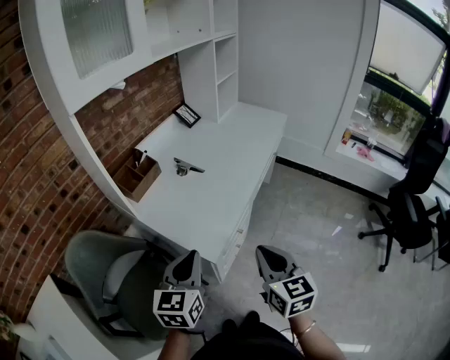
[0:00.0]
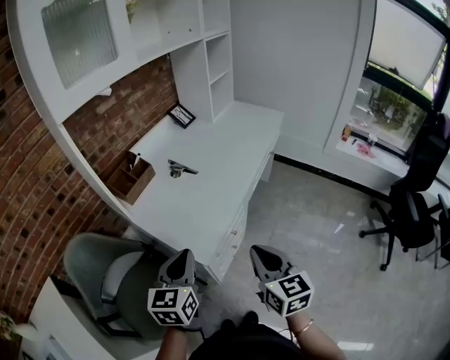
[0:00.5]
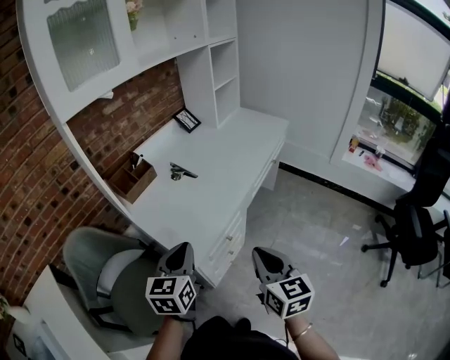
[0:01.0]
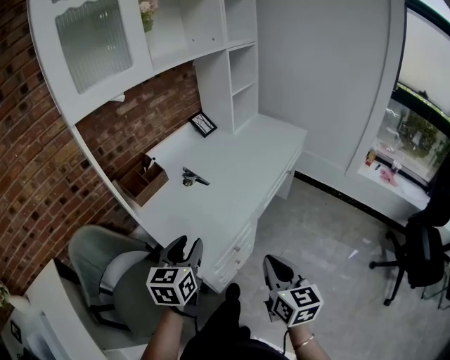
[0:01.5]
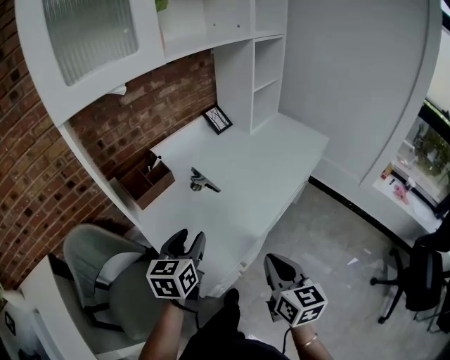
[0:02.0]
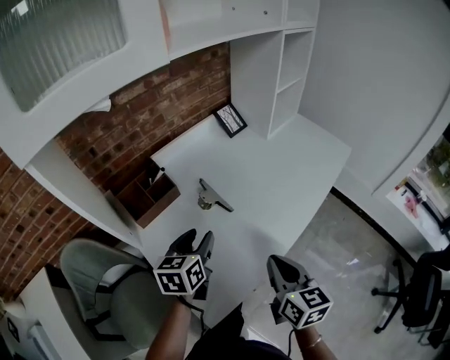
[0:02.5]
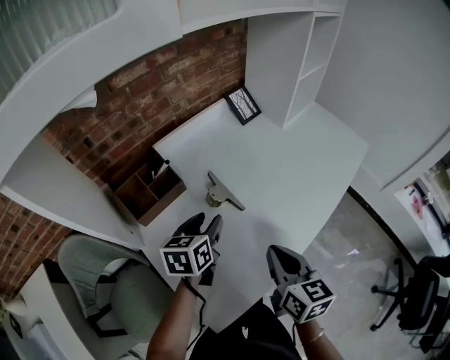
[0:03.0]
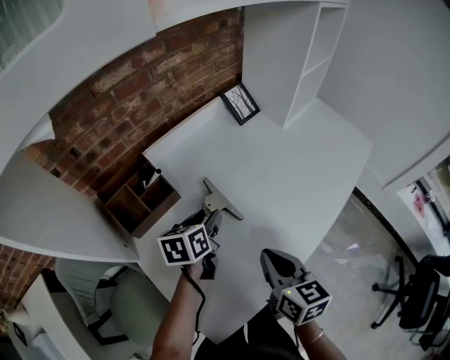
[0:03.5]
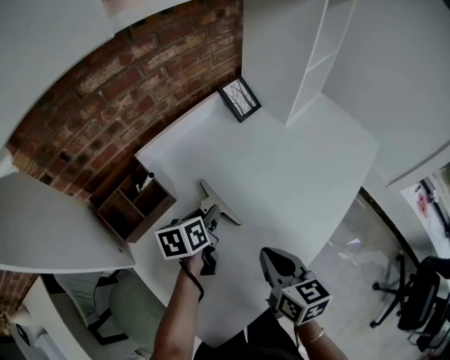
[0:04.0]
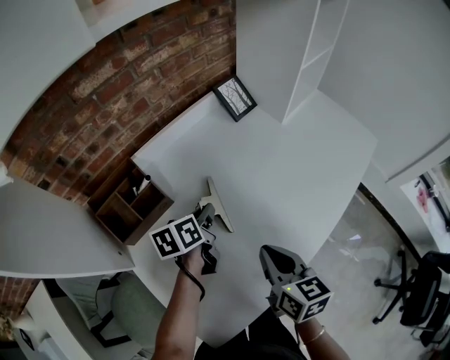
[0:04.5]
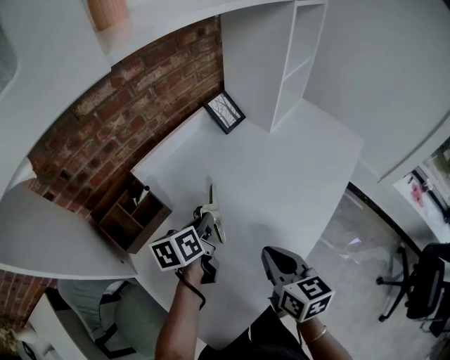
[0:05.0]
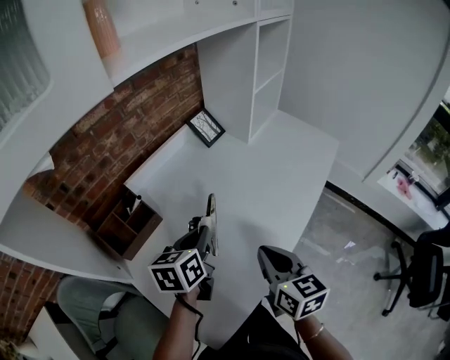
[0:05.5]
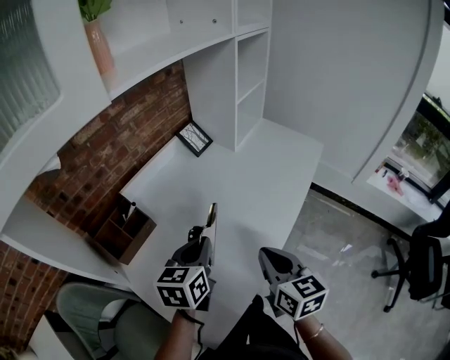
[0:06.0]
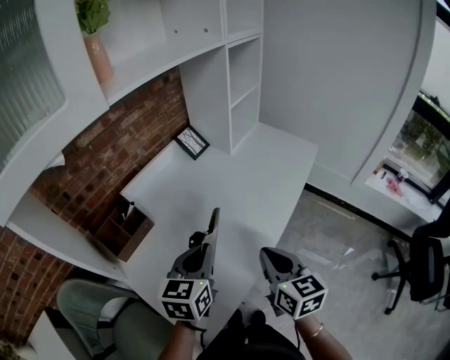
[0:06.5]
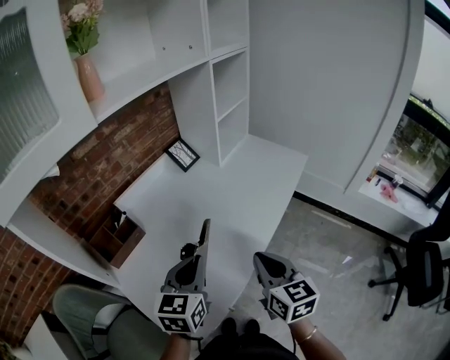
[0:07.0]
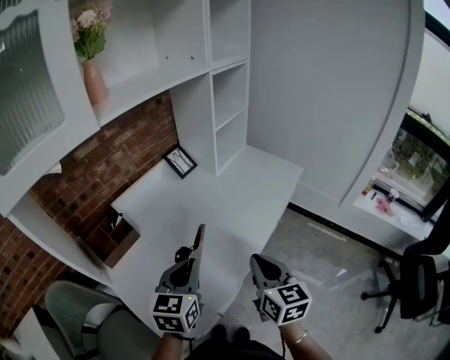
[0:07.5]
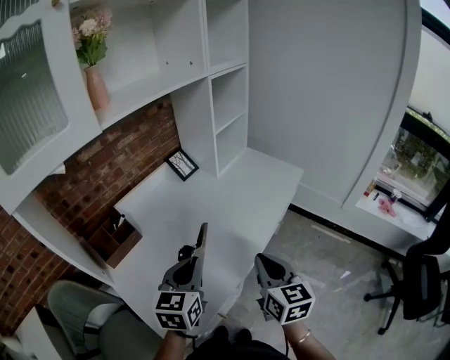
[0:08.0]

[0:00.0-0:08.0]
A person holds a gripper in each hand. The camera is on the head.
0:00.0 to 0:02.0: The left gripper travels forward by about 20 cm, and opens up. The right gripper shifts roughly 15 cm forward and to the right.
0:02.0 to 0:04.0: The right gripper moves forward, approximately 25 cm. Meanwhile the left gripper is displaced forward and downward by approximately 35 cm, and rotates roughly 30 degrees.
0:04.0 to 0:06.0: The right gripper is displaced upward, to the right and backward by approximately 10 cm, while the left gripper moves upward, backward and to the right, some 20 cm, swivels roughly 30 degrees, and closes its fingers.
0:06.0 to 0:08.0: The left gripper shifts approximately 10 cm to the right, backward and upward, while the right gripper is displaced to the right by about 10 cm.

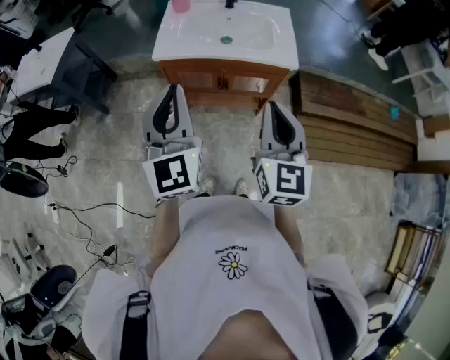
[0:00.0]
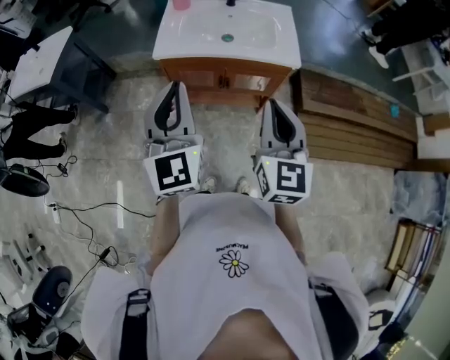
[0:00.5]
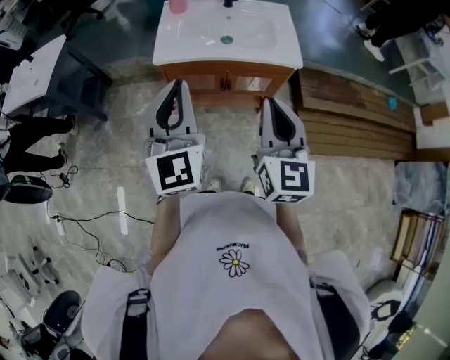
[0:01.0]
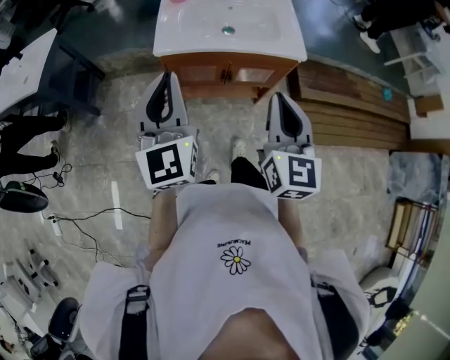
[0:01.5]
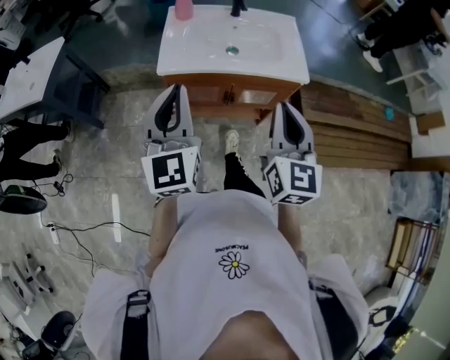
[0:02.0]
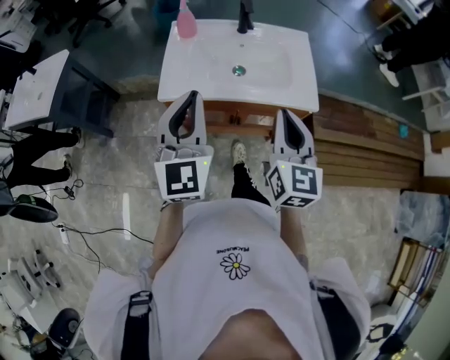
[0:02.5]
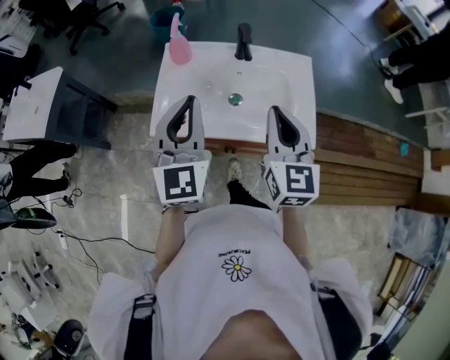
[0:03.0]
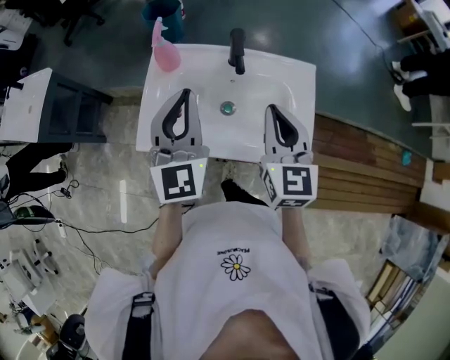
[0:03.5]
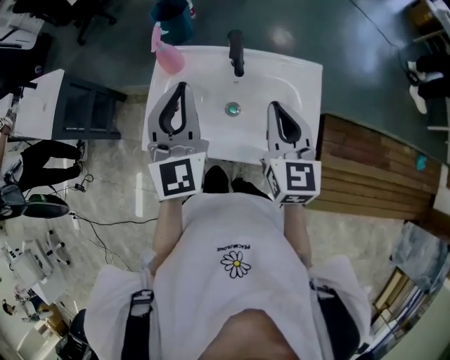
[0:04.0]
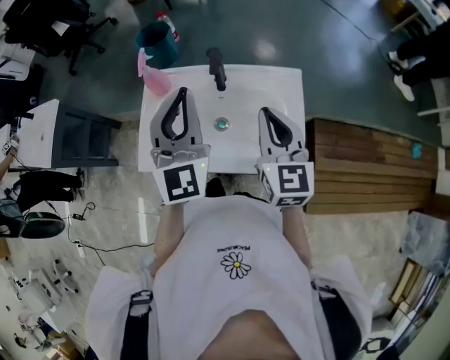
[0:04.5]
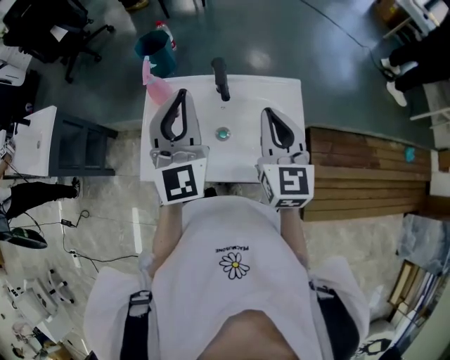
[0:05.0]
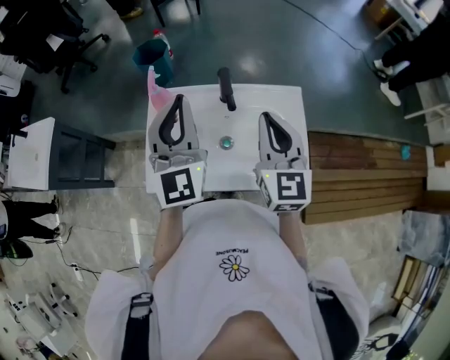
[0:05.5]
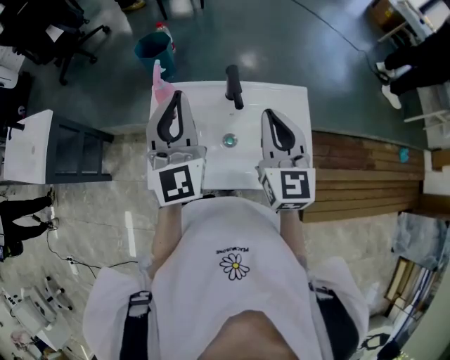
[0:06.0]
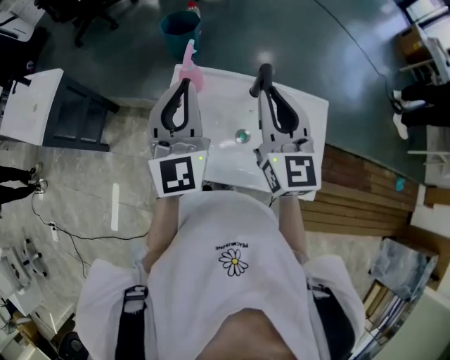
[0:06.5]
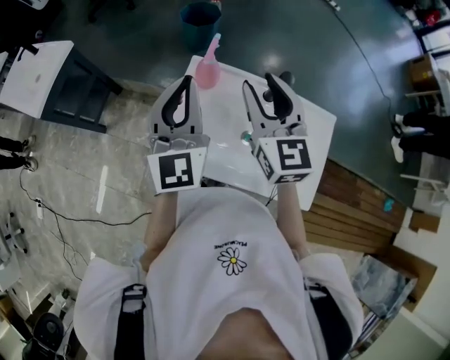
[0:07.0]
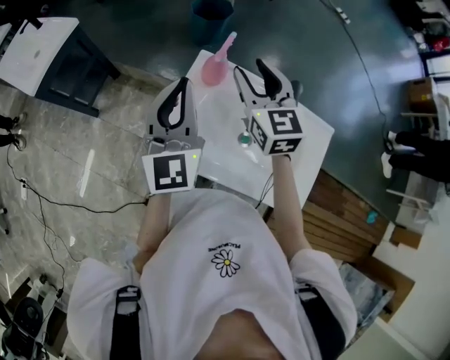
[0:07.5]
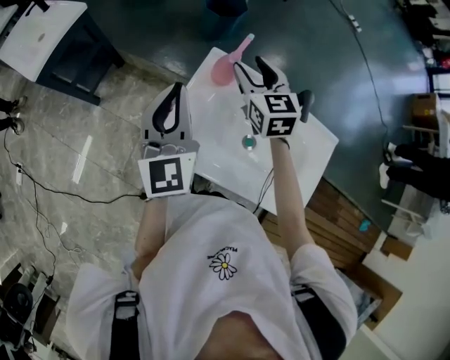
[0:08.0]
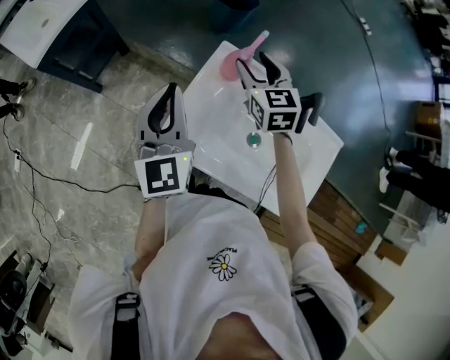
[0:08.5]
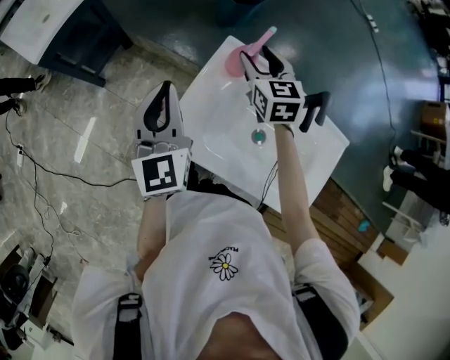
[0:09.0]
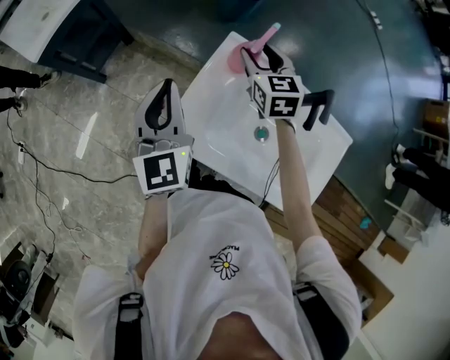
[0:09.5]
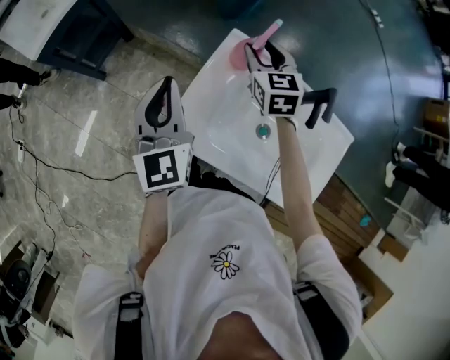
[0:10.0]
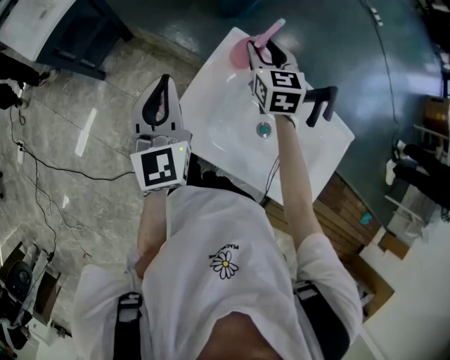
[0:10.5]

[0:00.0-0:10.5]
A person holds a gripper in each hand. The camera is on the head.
0:00.0 to 0:02.0: The right gripper is displaced forward by about 5 cm; the left gripper heads forward and to the left, covering approximately 10 cm.
0:02.0 to 0:04.0: Both grippers move forward, roughly 35 cm.
0:04.0 to 0:06.5: The left gripper moves to the left and forward, approximately 10 cm; the right gripper heads to the left, upward and forward, covering approximately 15 cm.
0:06.5 to 0:08.5: The right gripper is displaced forward, downward and to the left by about 25 cm, rotates roughly 30 degrees, and opens, while the left gripper heads to the left and downward, covering roughly 20 cm, and turns by about 30 degrees.
0:08.5 to 0:10.5: There are only small adjustments of the grippers.

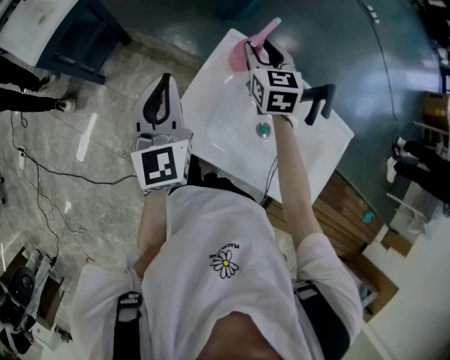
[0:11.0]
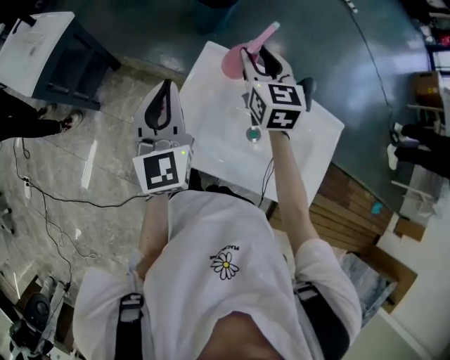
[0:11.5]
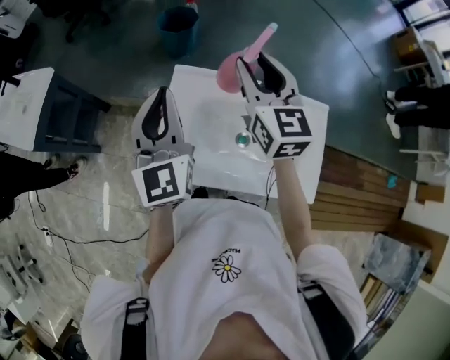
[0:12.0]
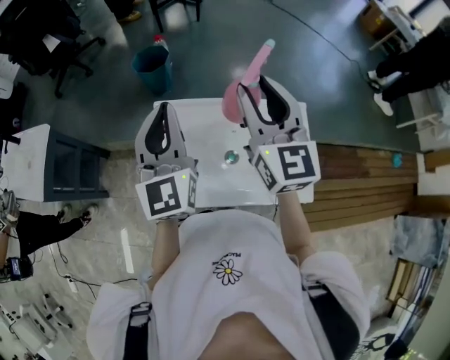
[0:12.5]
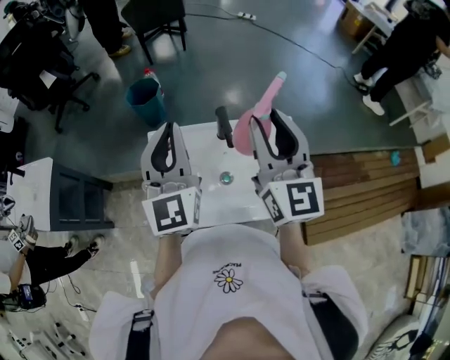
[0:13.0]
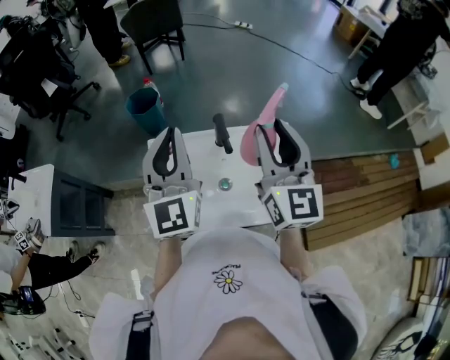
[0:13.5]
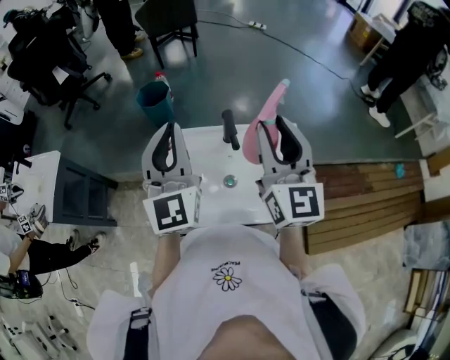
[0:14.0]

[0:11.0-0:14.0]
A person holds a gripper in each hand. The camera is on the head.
0:11.0 to 0:12.5: The left gripper is displaced to the right and upward by roughly 25 cm, and swivels approximately 30 degrees, while the right gripper travels upward, backward and to the right by roughly 35 cm, and points its fingers some 30 degrees further upward.
0:12.5 to 0:14.0: The right gripper goes some 10 cm to the right and backward. The left gripper changes place by roughly 5 cm.

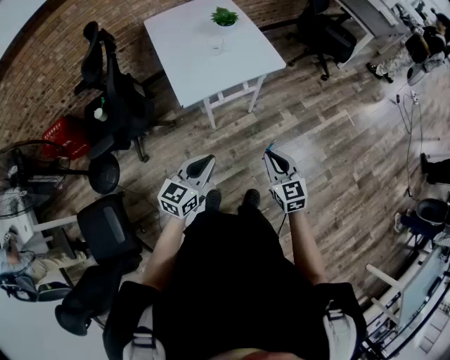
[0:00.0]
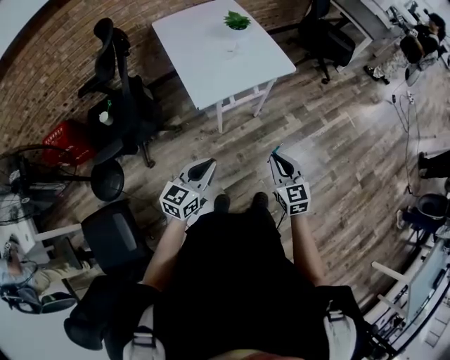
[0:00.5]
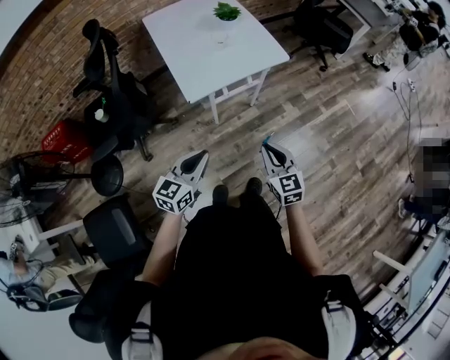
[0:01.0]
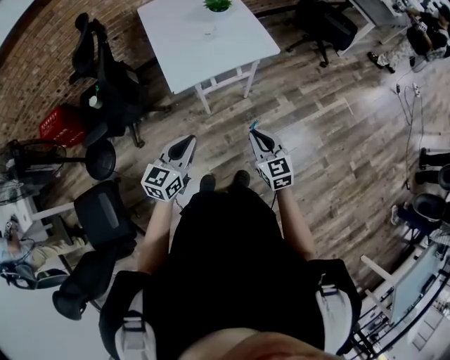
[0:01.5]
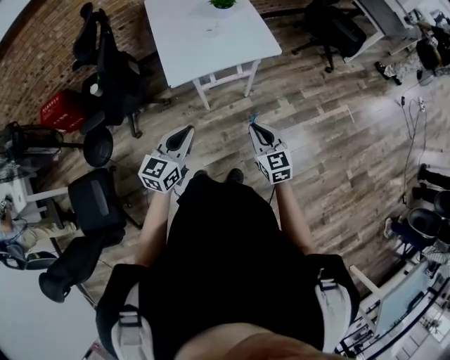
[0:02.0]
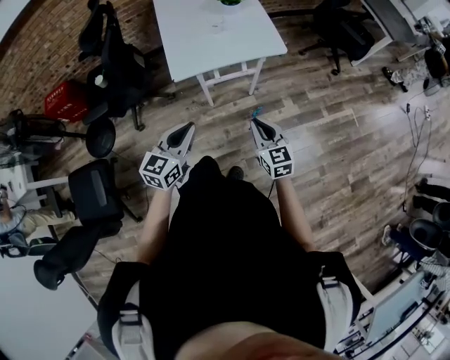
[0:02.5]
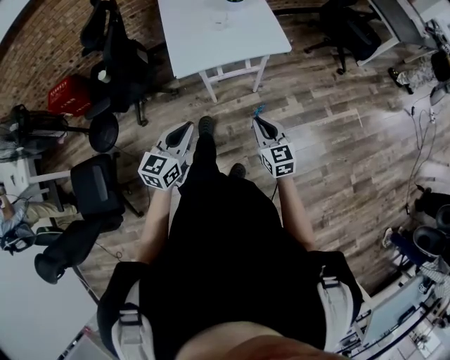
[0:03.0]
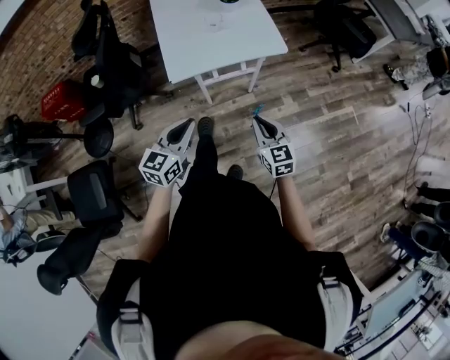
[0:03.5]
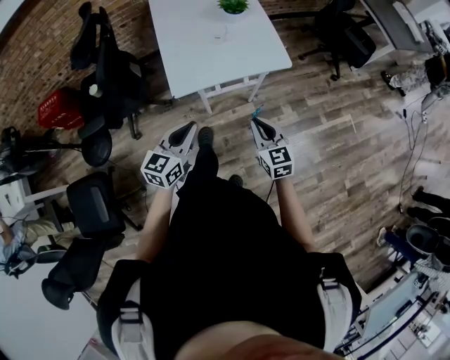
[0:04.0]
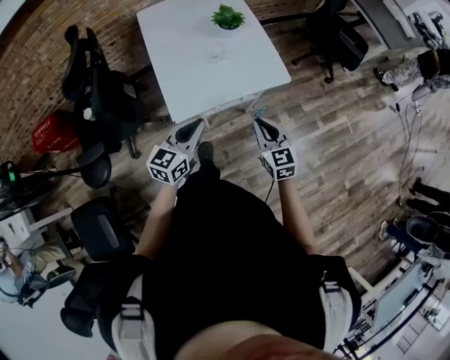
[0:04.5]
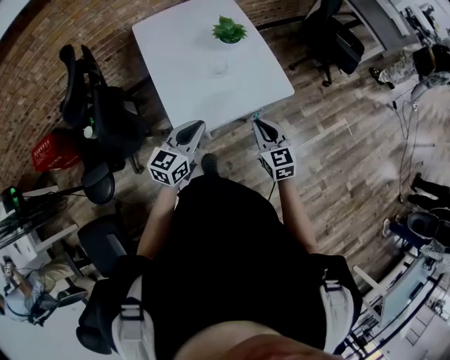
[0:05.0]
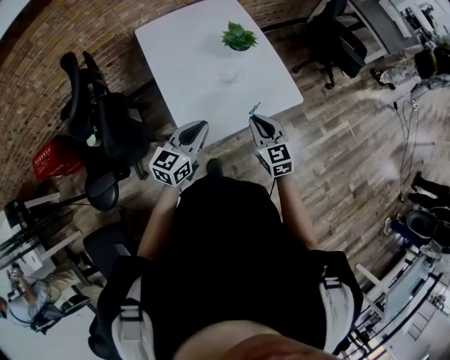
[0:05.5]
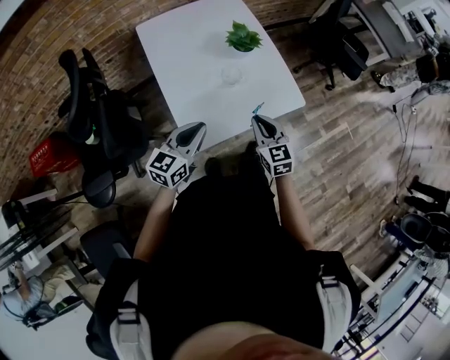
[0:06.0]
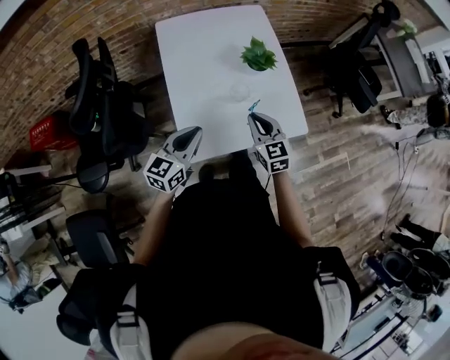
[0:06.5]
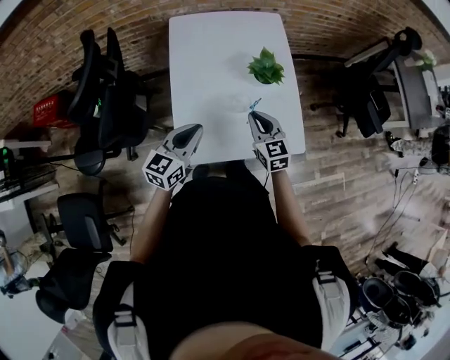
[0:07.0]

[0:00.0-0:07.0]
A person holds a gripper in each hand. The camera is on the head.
0:00.0 to 0:02.0: The right gripper goes about 5 cm forward, and goes to the left and returns, some 10 cm each way, while the left gripper reaches some 10 cm to the left, then returns.
0:02.0 to 0:03.5: There are only small adjustments of the grippers.
0:03.5 to 0:05.0: The left gripper heads forward, covering roughly 25 cm. Meanwhile the right gripper is displaced forward and to the left by about 25 cm.
0:05.0 to 0:07.0: The right gripper shifts approximately 25 cm forward, while the left gripper heads forward and to the left, covering approximately 15 cm.
